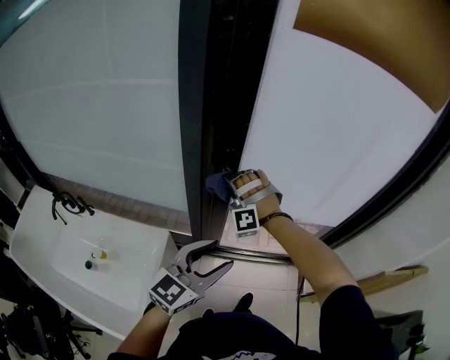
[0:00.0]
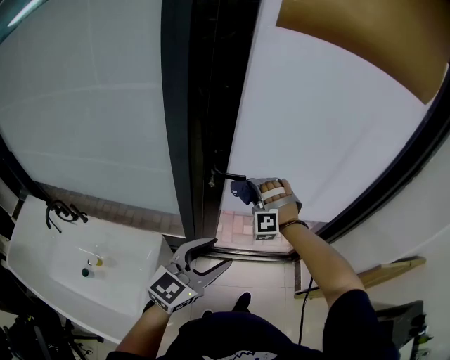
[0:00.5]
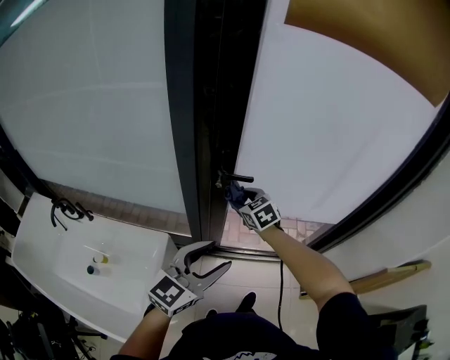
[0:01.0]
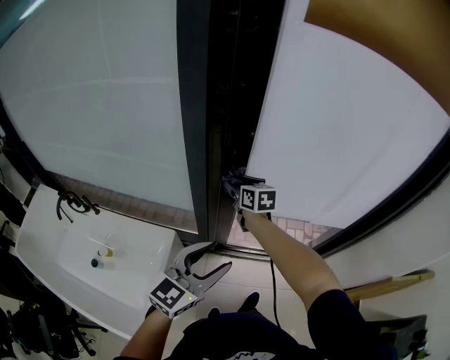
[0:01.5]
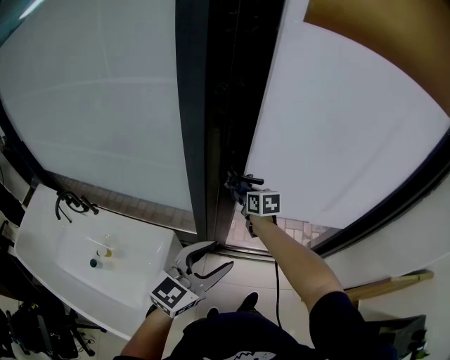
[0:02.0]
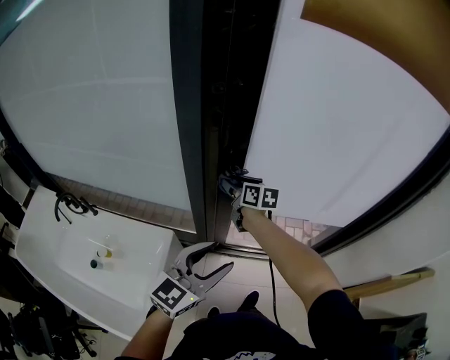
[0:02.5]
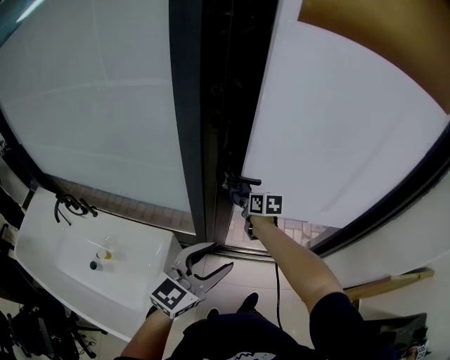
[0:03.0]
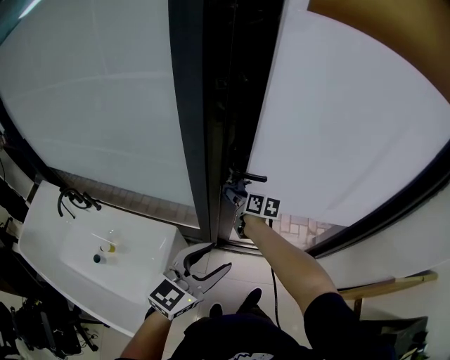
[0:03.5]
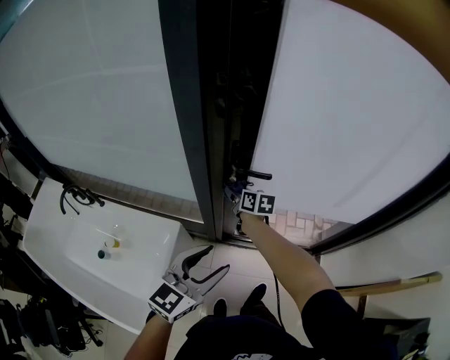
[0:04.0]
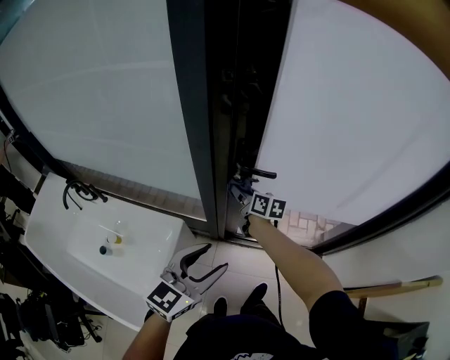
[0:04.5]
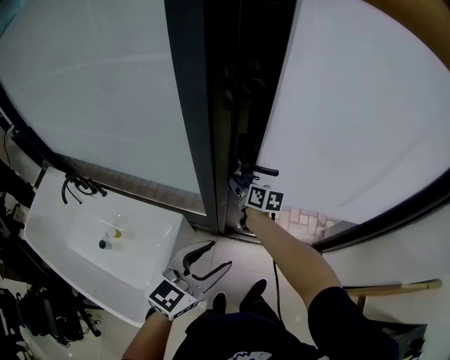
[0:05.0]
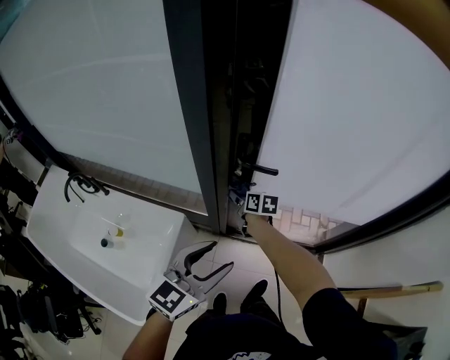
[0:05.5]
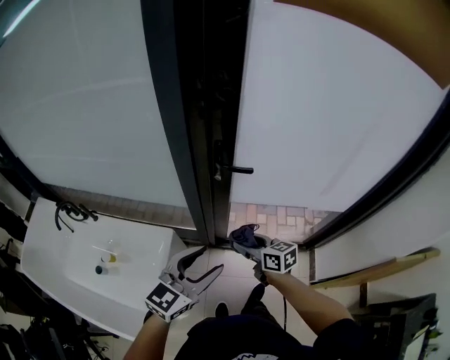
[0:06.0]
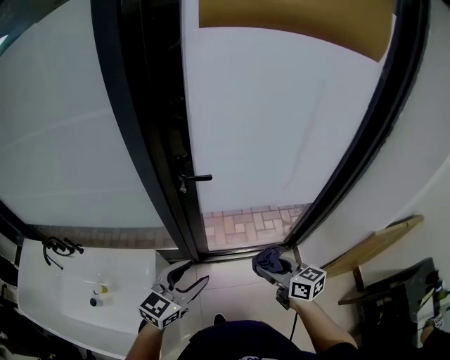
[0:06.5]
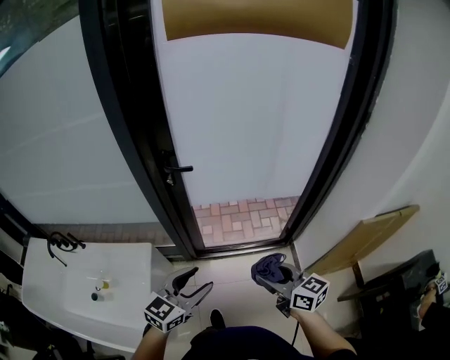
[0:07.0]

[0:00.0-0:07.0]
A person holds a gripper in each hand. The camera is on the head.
0:00.0 to 0:02.0: The right gripper moves left and right over some 10 cm, changing direction 2 times, and twists about 120 degrees clockwise, seen from behind.
0:02.0 to 0:03.5: The right gripper rotates roughly 20 degrees.
0:03.5 to 0:05.0: The grippers make only small movements.
0:05.0 to 0:07.0: The right gripper travels backward and to the right by roughly 50 cm, and rotates about 20 degrees. The left gripper heads backward and to the right, covering about 20 cm.

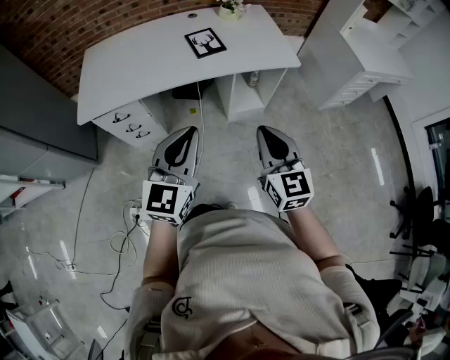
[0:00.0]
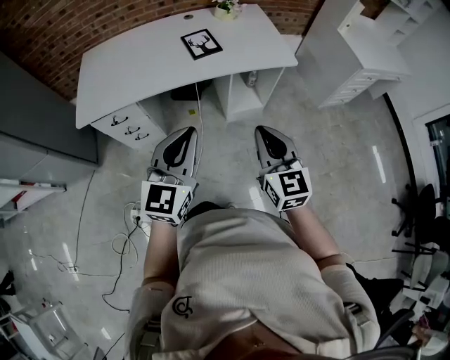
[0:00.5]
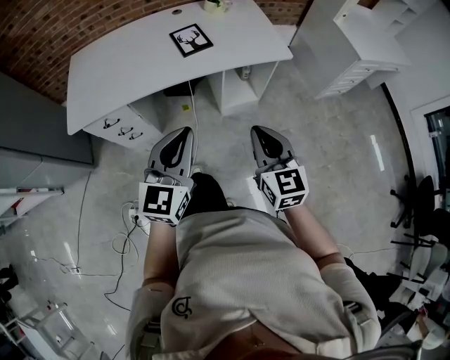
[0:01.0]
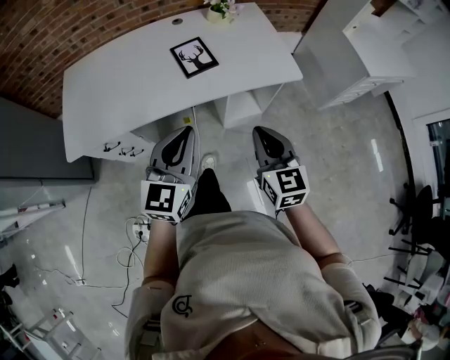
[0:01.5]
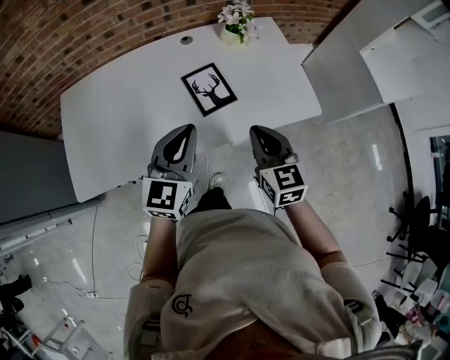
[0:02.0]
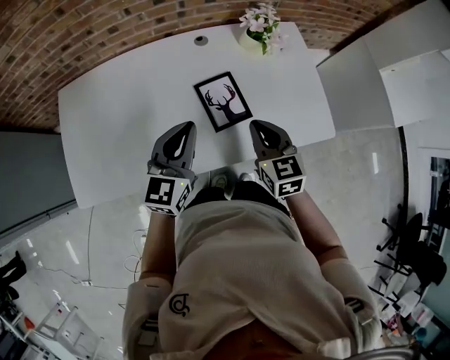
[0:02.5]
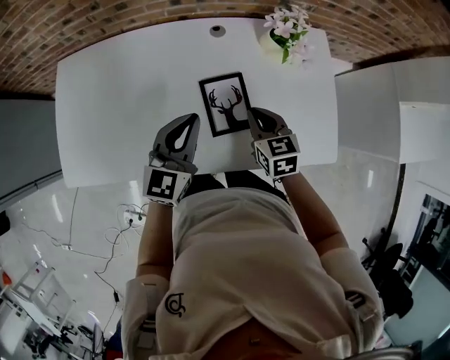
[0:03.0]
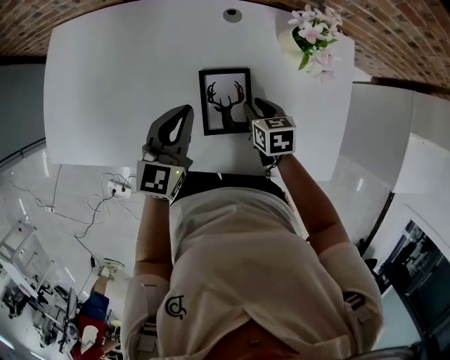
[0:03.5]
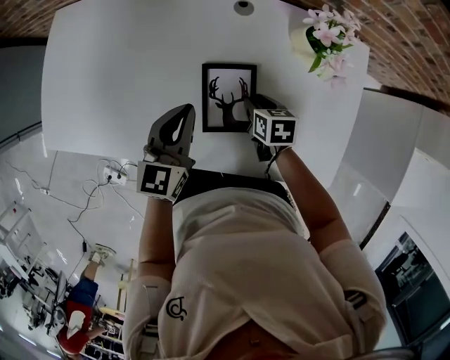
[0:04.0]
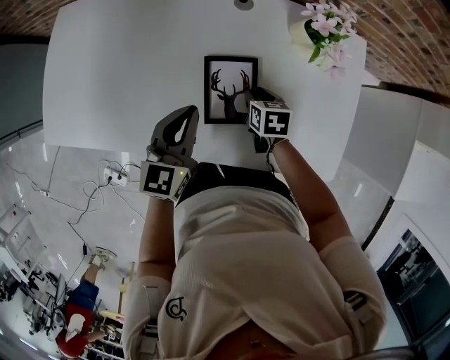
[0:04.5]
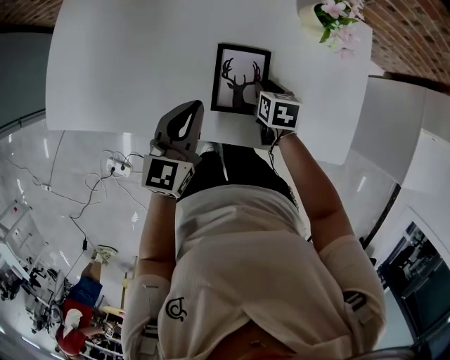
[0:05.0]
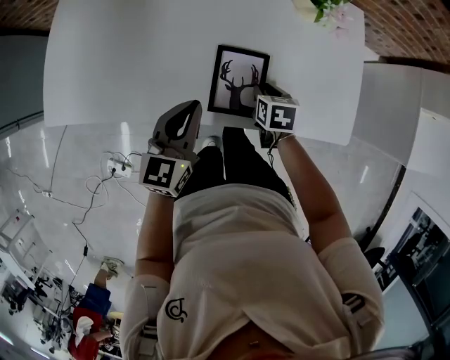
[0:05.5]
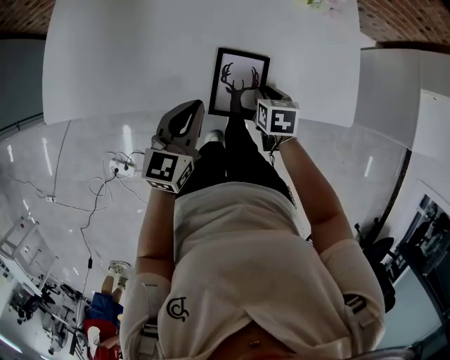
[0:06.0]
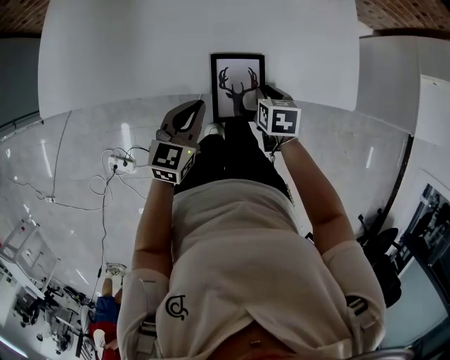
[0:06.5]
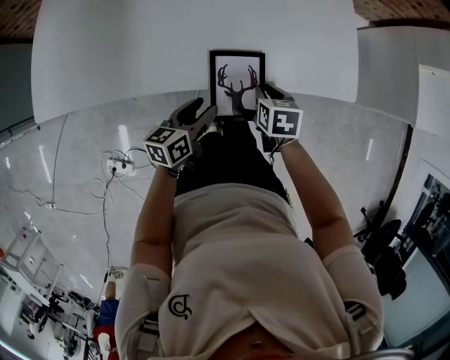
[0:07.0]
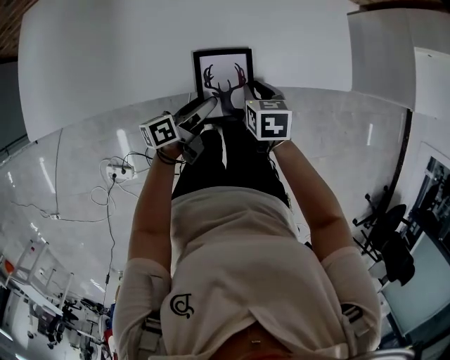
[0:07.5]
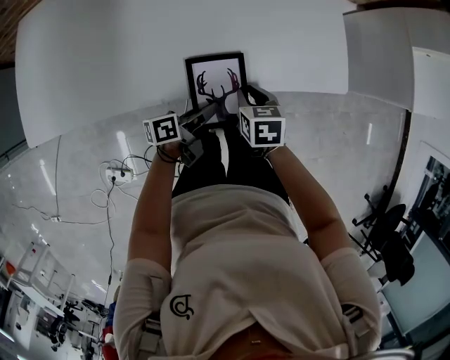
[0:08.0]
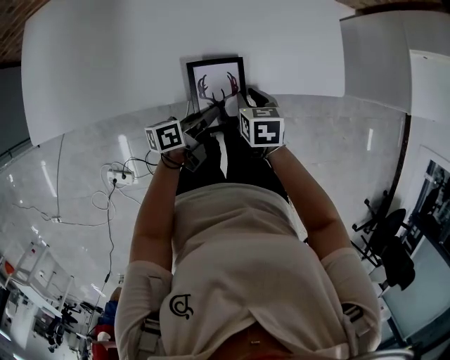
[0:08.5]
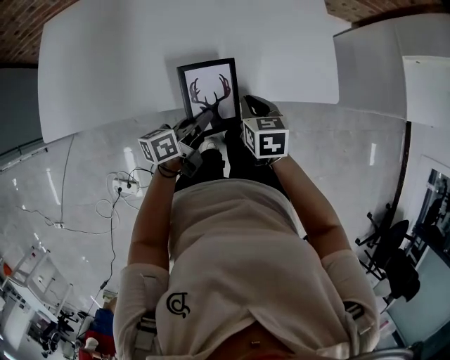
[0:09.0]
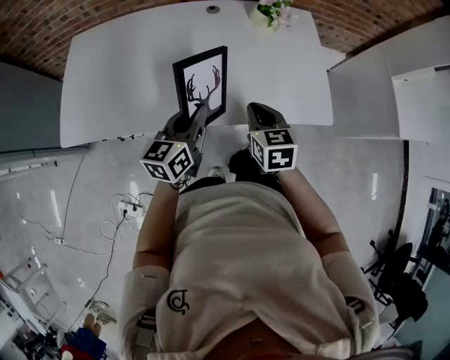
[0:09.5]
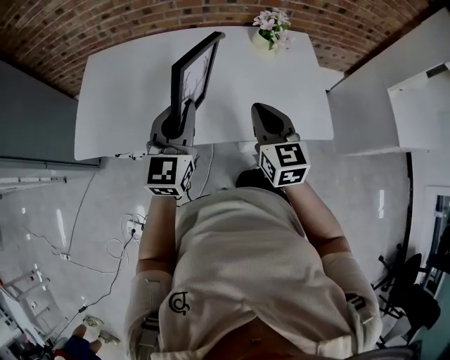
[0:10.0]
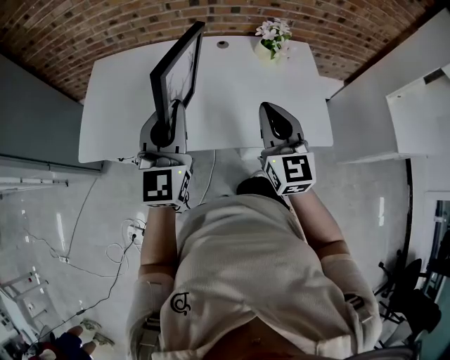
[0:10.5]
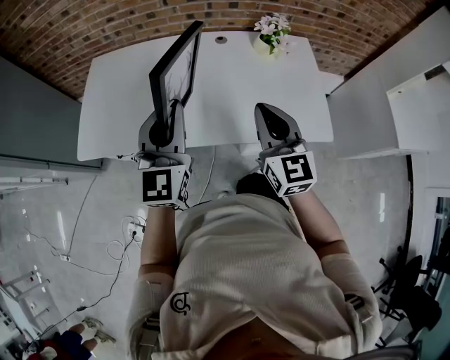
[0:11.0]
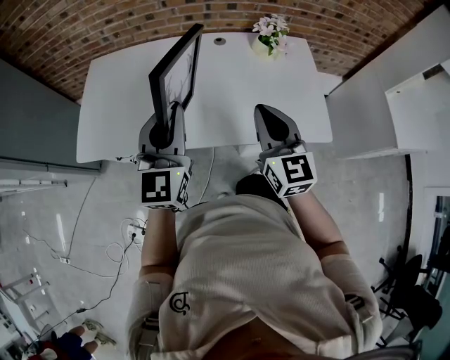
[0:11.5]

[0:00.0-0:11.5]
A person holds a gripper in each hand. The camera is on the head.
0:00.0 to 0:02.0: Both grippers move forward, roughly 35 cm.
0:02.0 to 0:04.0: The left gripper moves roughly 25 cm, and turns by about 30 degrees. Meanwhile the right gripper is displaced downward by some 25 cm, tilts its fingers roughly 40 degrees downward, and opens.
0:04.0 to 0:06.0: Both grippers move backward, some 20 cm.
0:06.0 to 0:07.5: The left gripper moves downward and to the right, roughly 15 cm, twists approximately 60 degrees counterclockwise, seen from behind, and opens its fingers, while the right gripper is displaced backward by roughly 5 cm.
0:07.5 to 0:09.5: Both grippers travel together upward, some 20 cm. The right gripper rotates approximately 30 degrees. Meanwhile the left gripper twists roughly 50 degrees clockwise, seen from behind, and closes up.
0:09.5 to 0:11.5: The right gripper is displaced upward by roughly 15 cm, and angles its fingers upward, by about 30 degrees. The left gripper moves upward and to the left, about 20 cm, and changes its angle by roughly 40 degrees.

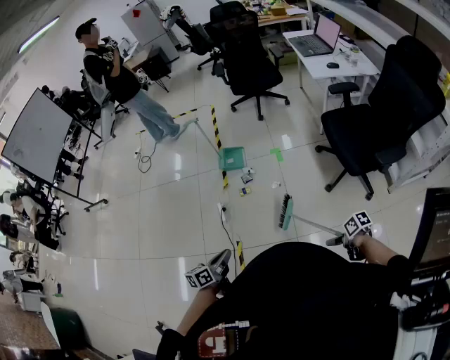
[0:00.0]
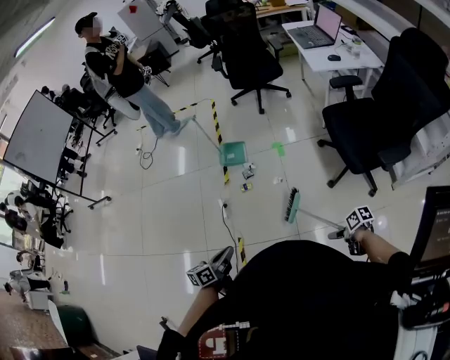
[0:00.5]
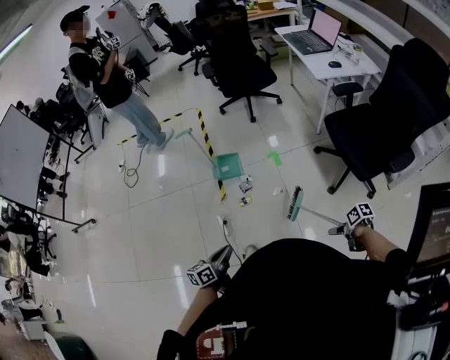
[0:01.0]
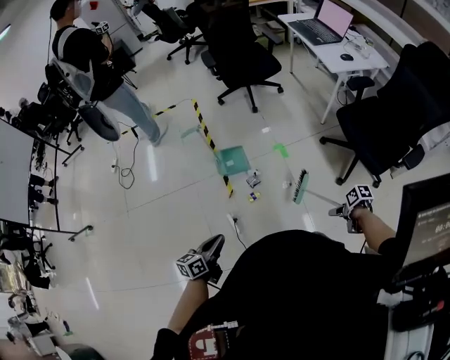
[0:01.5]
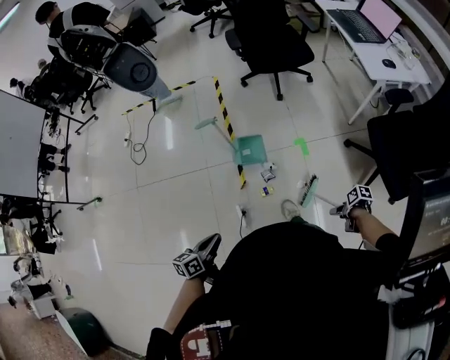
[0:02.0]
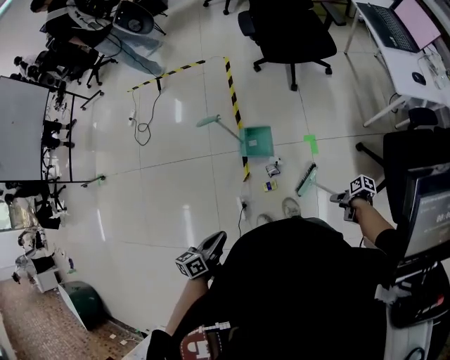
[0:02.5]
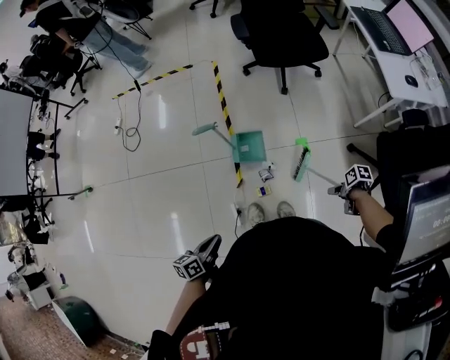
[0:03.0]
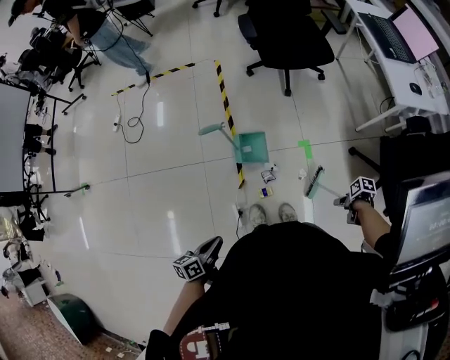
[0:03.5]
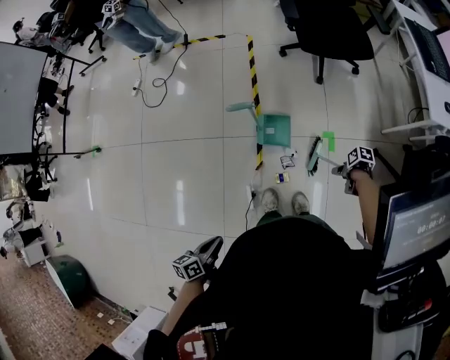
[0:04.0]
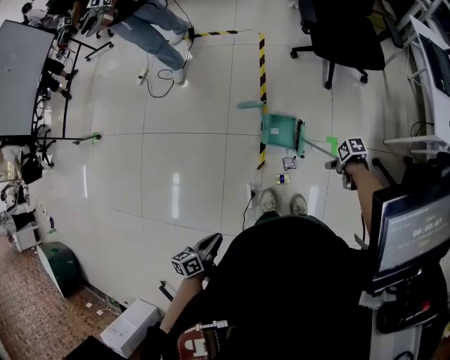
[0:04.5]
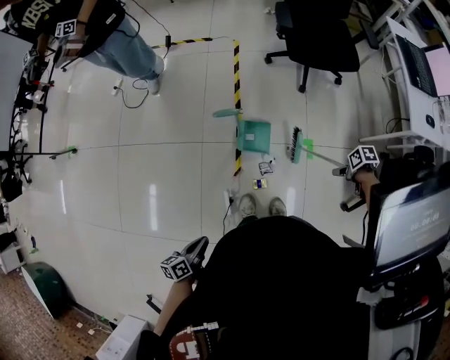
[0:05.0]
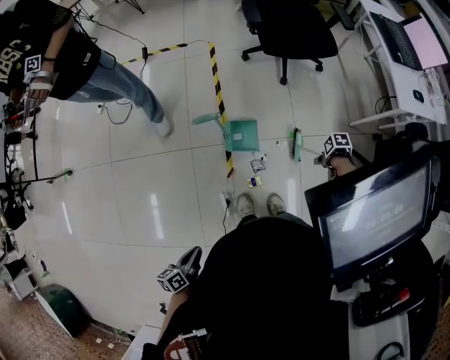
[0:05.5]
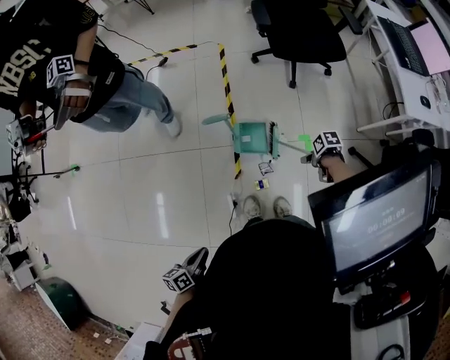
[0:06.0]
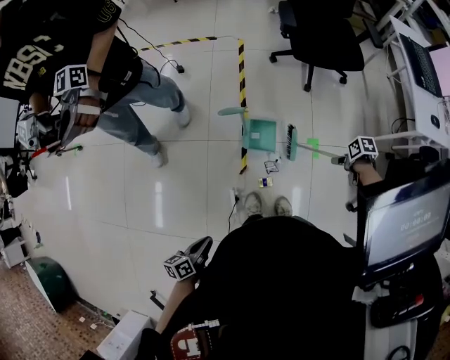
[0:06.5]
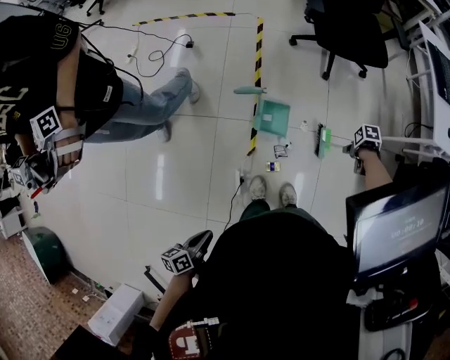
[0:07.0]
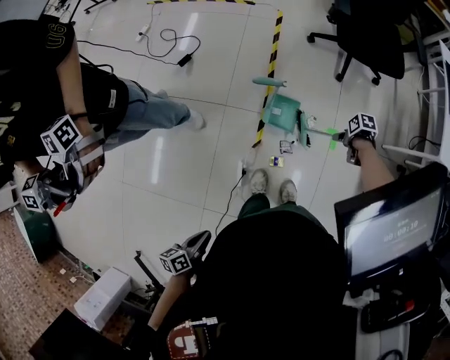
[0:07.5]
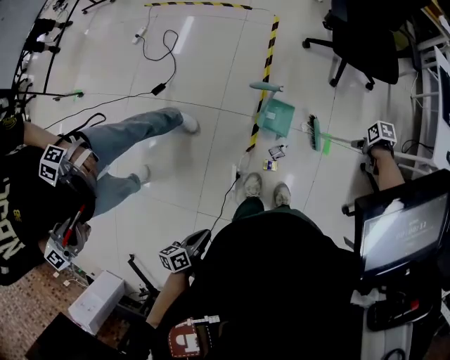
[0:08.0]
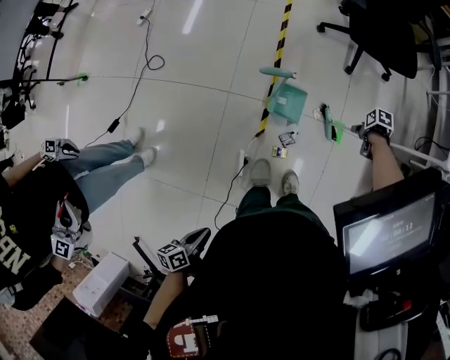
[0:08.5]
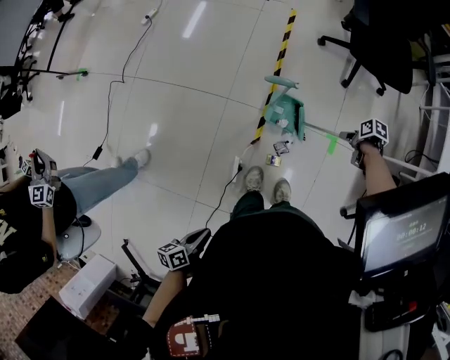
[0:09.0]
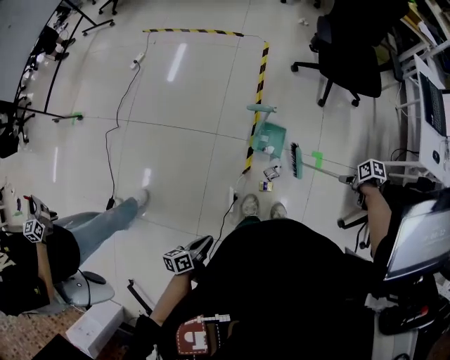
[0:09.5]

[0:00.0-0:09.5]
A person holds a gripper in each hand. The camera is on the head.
0:00.0 to 0:02.0: The left gripper moves roughly 40 cm.
0:02.0 to 0:04.0: The left gripper ends up some 10 cm from where it was.
0:05.5 to 0:07.5: The left gripper moves roughly 10 cm.
